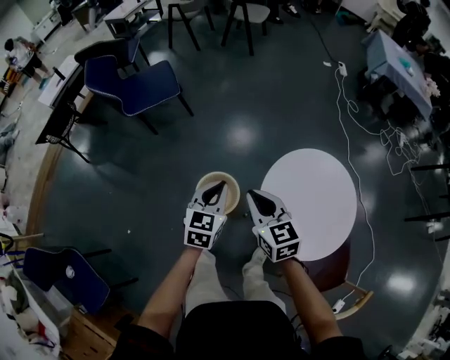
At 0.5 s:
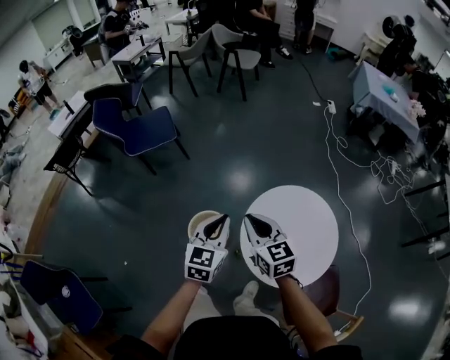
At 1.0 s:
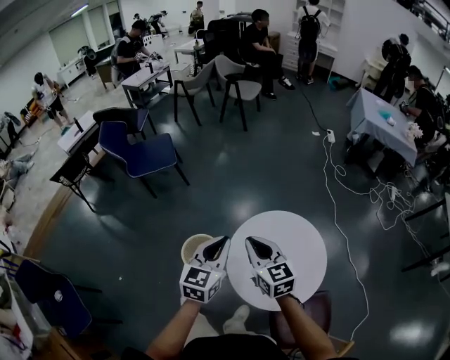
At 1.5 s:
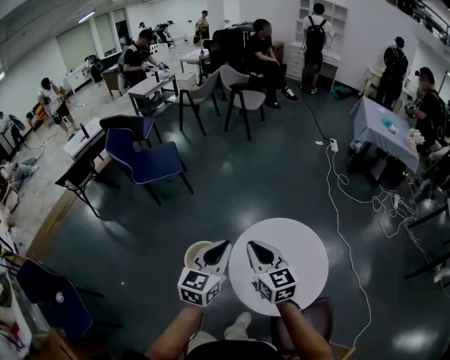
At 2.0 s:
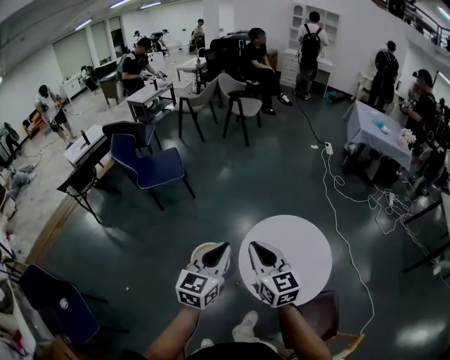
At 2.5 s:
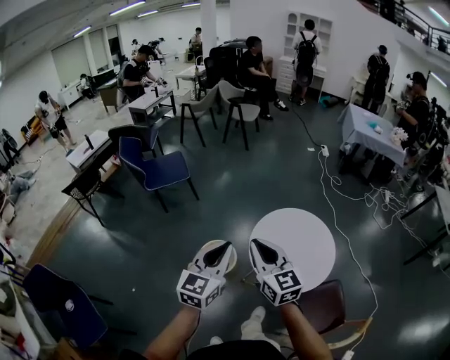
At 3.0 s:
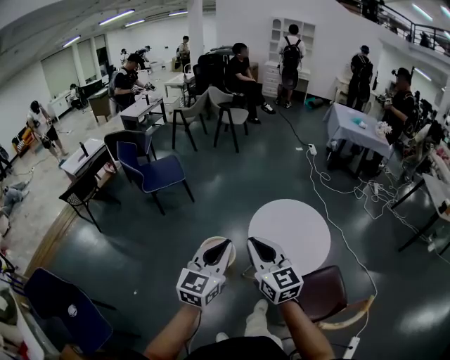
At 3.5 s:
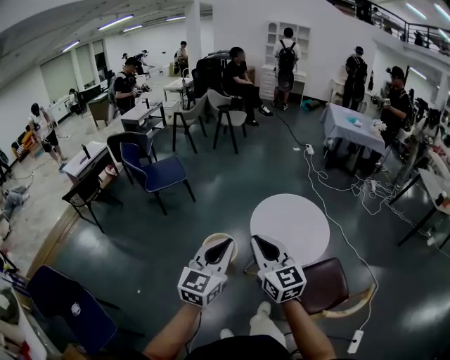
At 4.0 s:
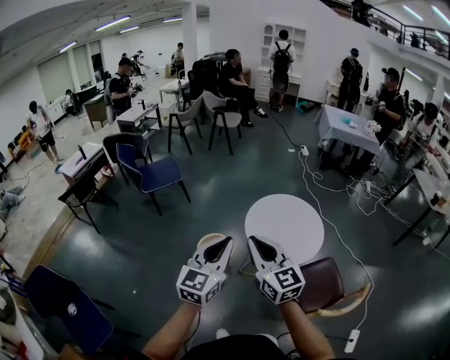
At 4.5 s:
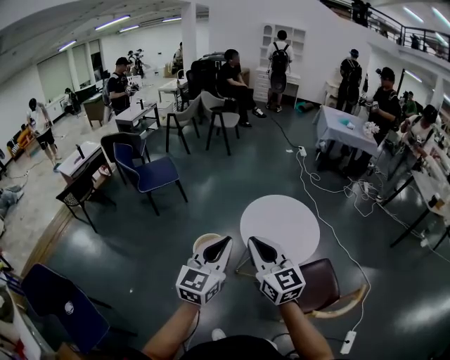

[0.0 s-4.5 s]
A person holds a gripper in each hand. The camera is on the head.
0.0 to 2.0 s: The two grippers go some 25 cm upward, backward and to the right.
2.0 to 4.5 s: Both grippers travel together backward, approximately 30 cm.

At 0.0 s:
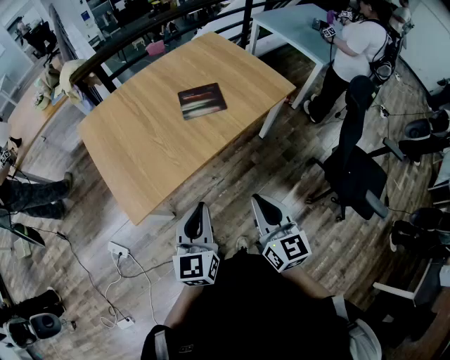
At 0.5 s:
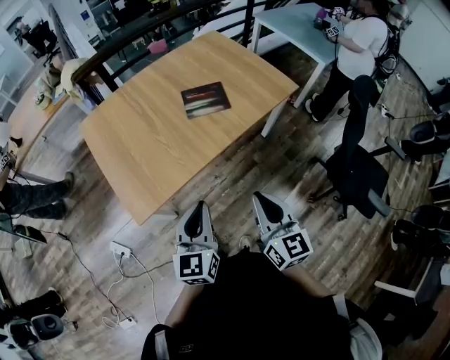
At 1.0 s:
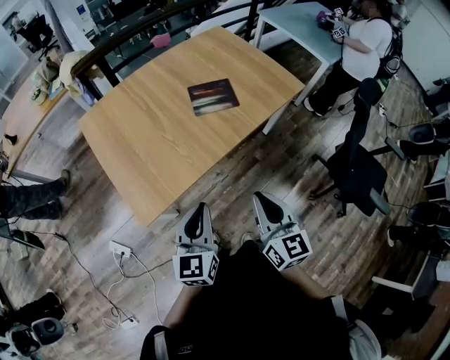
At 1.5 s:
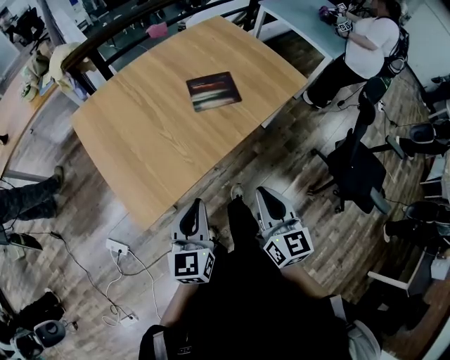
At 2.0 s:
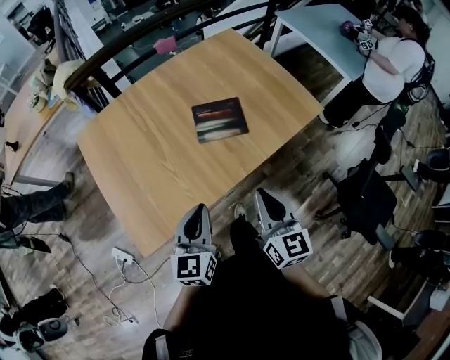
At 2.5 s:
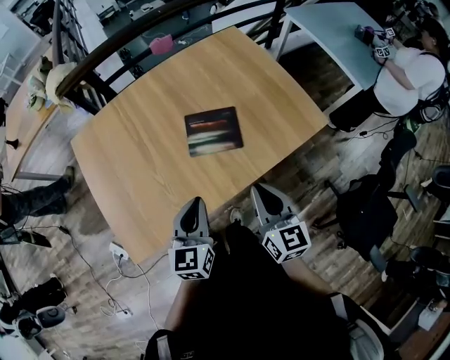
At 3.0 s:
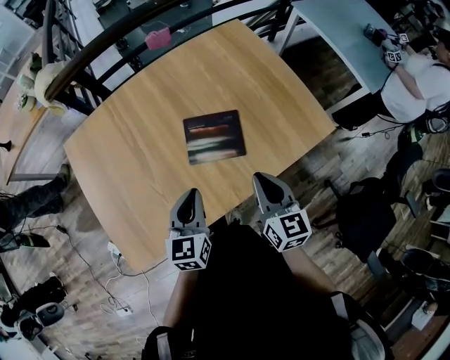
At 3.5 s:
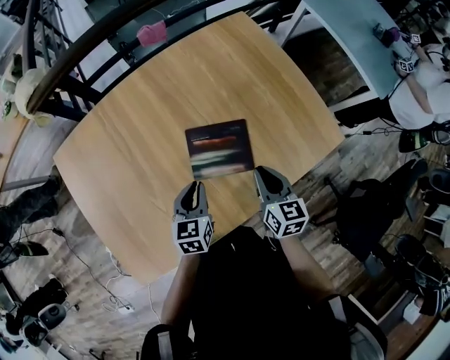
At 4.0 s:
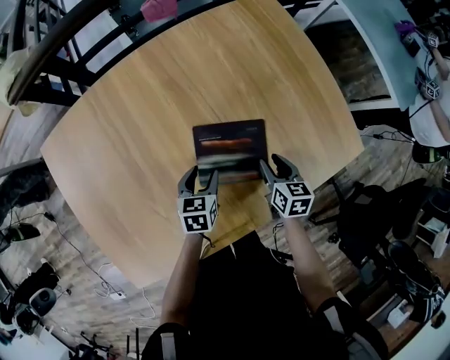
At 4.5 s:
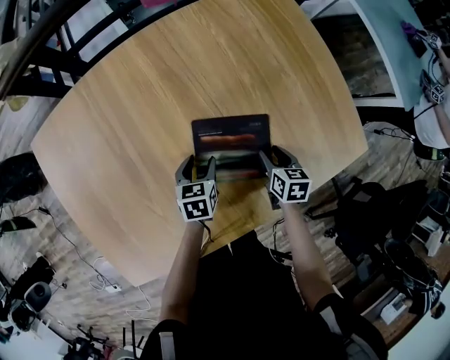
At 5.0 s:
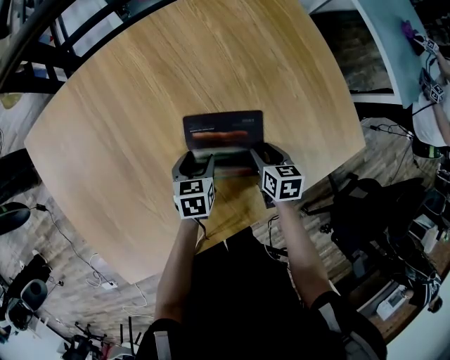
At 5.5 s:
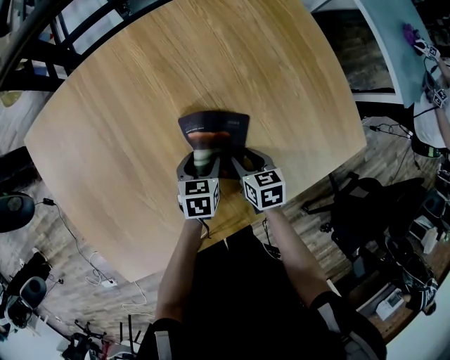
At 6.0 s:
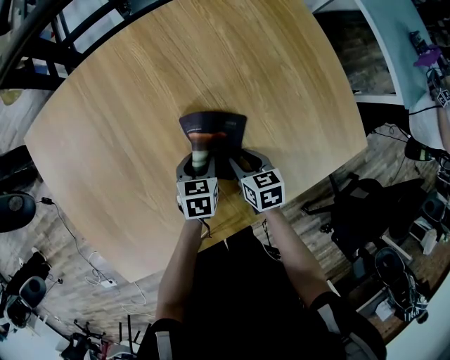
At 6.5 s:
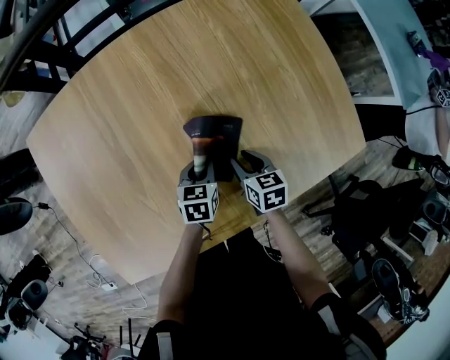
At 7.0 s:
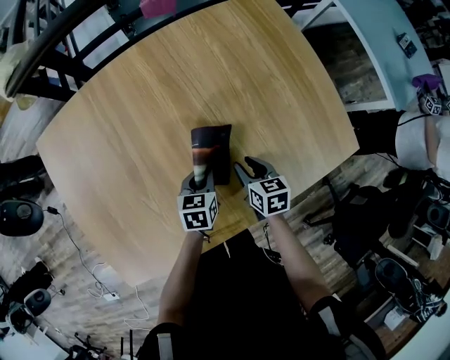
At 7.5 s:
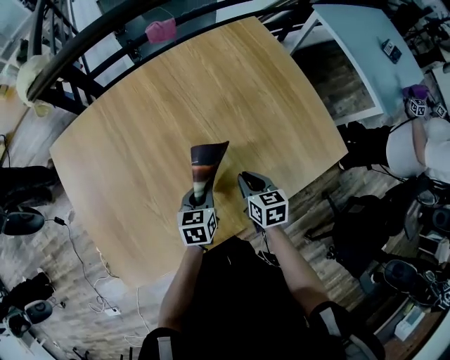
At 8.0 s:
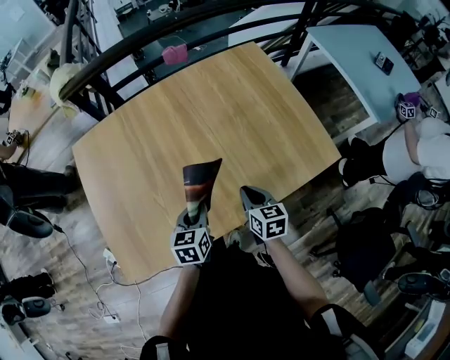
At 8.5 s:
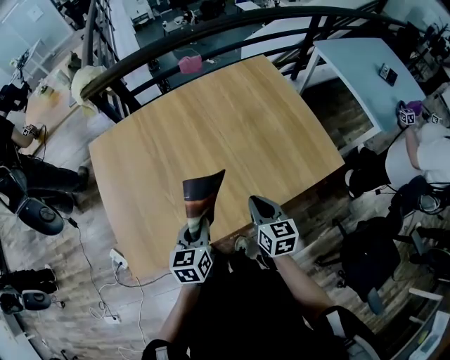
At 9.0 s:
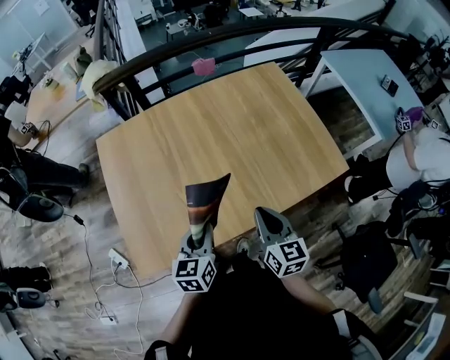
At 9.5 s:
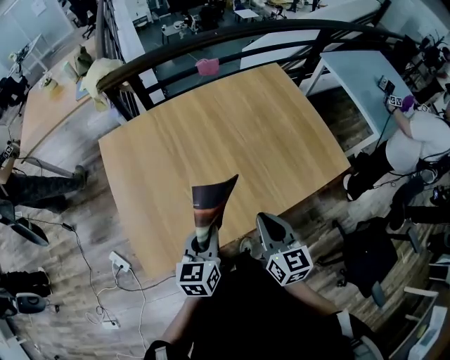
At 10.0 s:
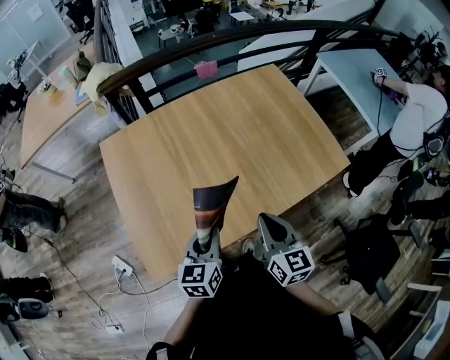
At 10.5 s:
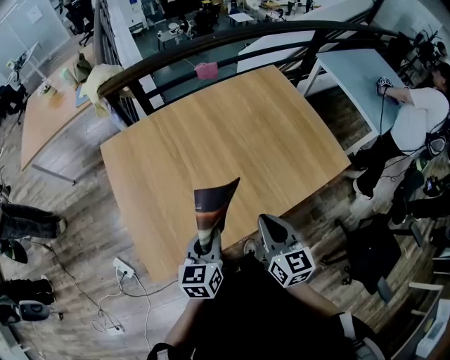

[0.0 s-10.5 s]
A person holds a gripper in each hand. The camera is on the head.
0.0 to 2.0 s: The two grippers go some 20 cm forward.
2.0 to 4.0 s: The grippers both shift forward and downward by some 50 cm. The left gripper tips its fingers downward by approximately 30 degrees, and opens its fingers. The right gripper tips its fingers downward by some 30 degrees, and opens up.
4.0 to 6.5 s: The left gripper closes. The right gripper travels to the left by approximately 10 cm.
6.5 to 8.5 s: The grippers both shift upward and backward by roughly 30 cm. The left gripper rotates approximately 20 degrees. The right gripper turns by about 30 degrees, and closes up.
8.5 to 10.5 s: The left gripper goes approximately 10 cm to the left. Meanwhile the right gripper is displaced to the left, upward and backward by some 20 cm.

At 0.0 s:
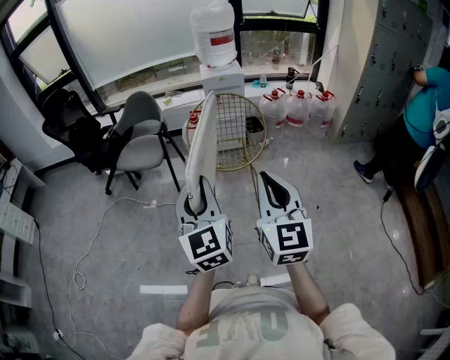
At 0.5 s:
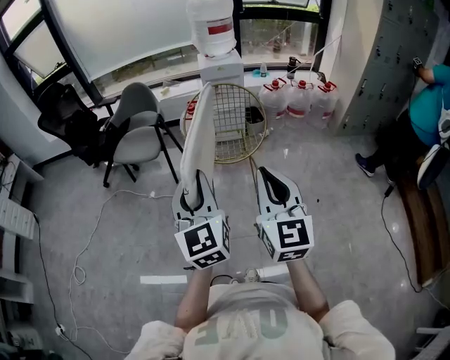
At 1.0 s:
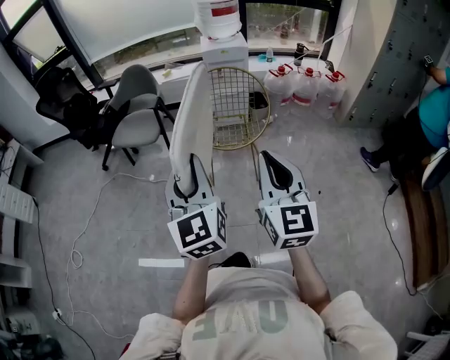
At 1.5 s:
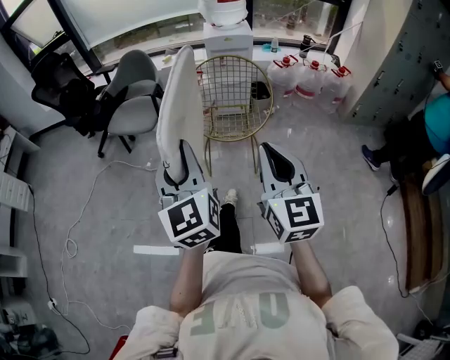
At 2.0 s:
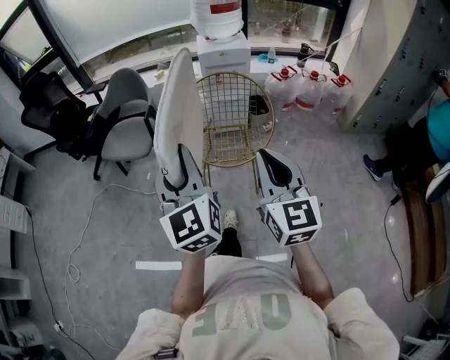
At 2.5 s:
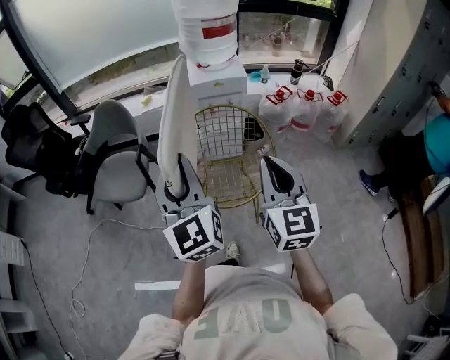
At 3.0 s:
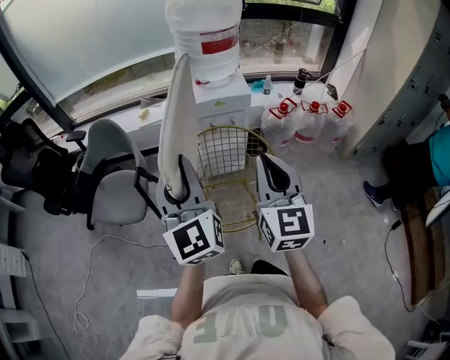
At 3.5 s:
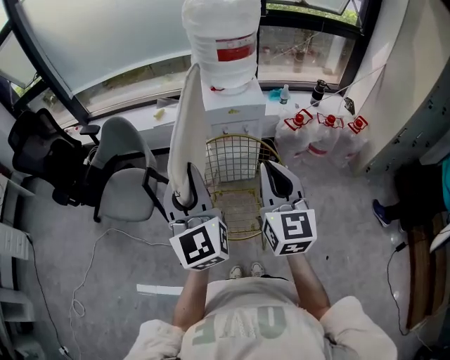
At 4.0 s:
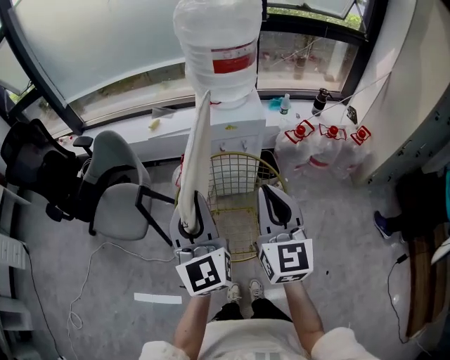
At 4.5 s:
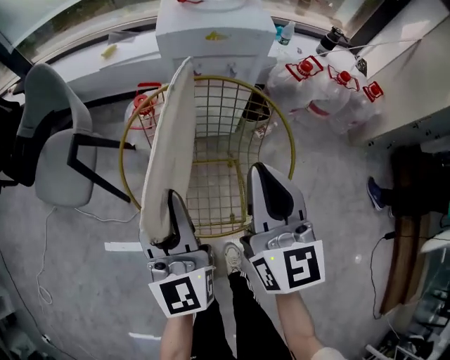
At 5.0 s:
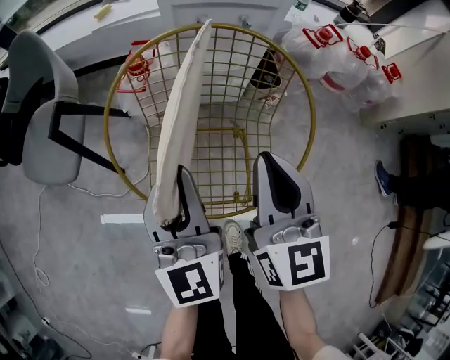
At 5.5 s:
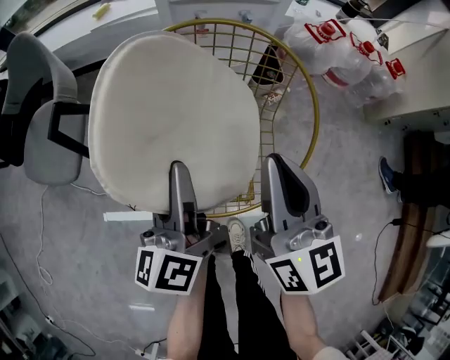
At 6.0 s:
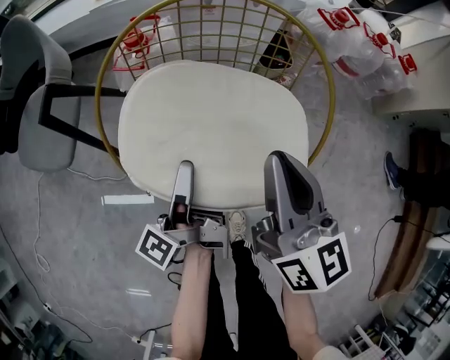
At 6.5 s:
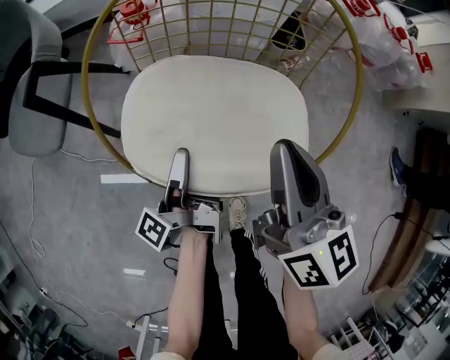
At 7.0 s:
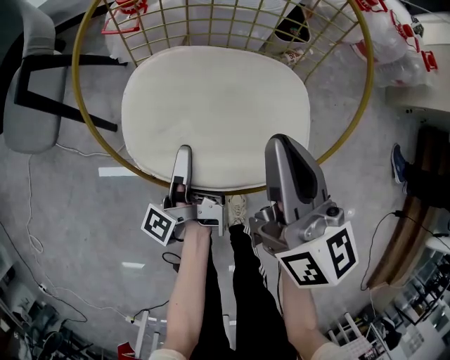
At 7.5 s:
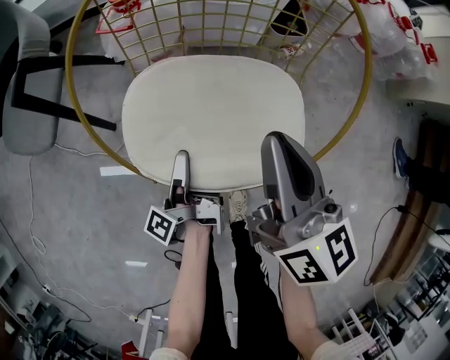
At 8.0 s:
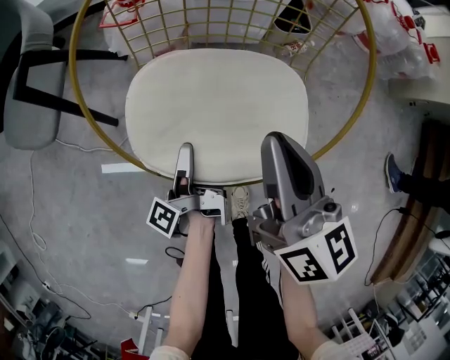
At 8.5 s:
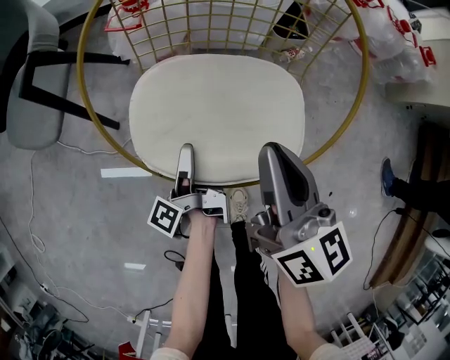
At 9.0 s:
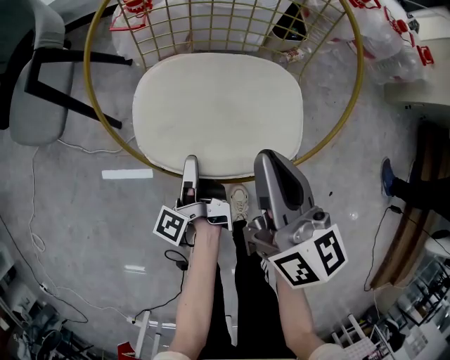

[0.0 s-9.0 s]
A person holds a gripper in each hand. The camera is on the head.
0.0 to 2.0 s: Both grippers move forward, about 20 cm.
2.0 to 4.5 s: The two grippers go about 50 cm forward and downward.
4.5 to 7.0 s: The left gripper travels downward by approximately 35 cm, and rotates around the line of its fingers by roughly 100 degrees, counterclockwise from behind, while the right gripper travels downward by approximately 20 cm, and swivels roughly 30 degrees.
7.0 to 9.0 s: Both grippers travel together backward, some 5 cm. The left gripper opens up.

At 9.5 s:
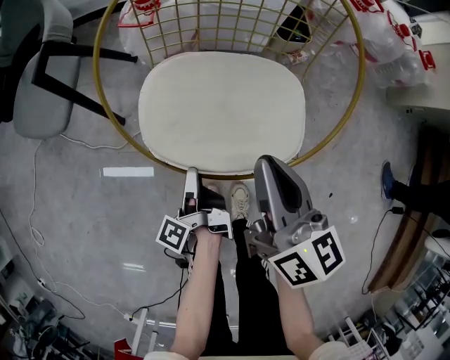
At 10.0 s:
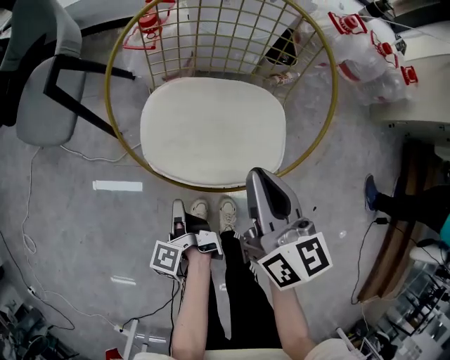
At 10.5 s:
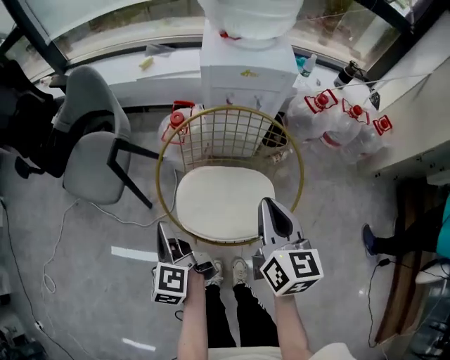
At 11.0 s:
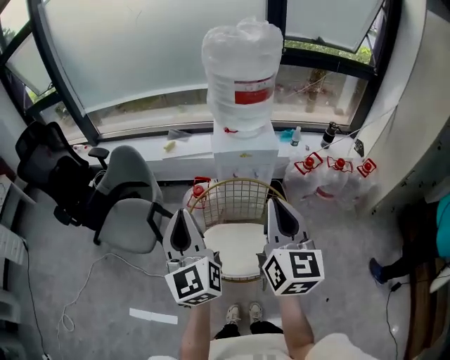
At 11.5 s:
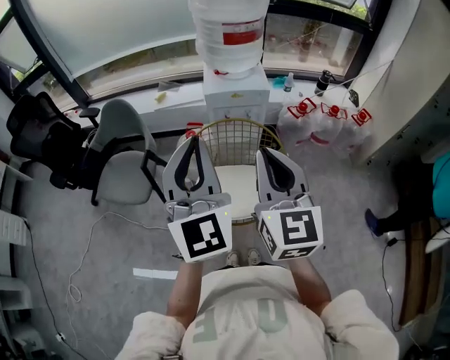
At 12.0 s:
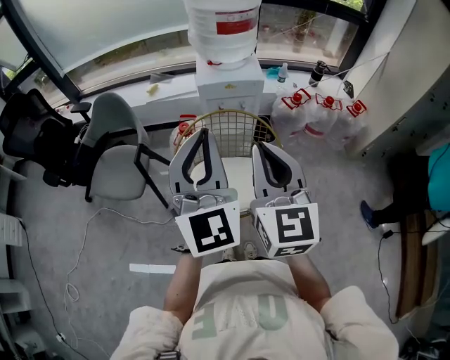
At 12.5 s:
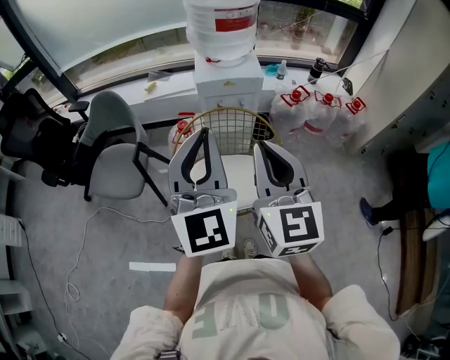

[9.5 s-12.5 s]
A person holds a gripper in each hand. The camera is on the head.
9.5 to 11.0 s: Both grippers move upward, some 50 cm. The left gripper twists some 90 degrees clockwise, seen from behind, and closes its fingers, while the right gripper swivels about 30 degrees.
11.0 to 12.5 s: The left gripper moves to the right and upward, about 10 cm, and changes its angle by roughly 20 degrees. The right gripper is displaced backward by roughly 5 cm.
